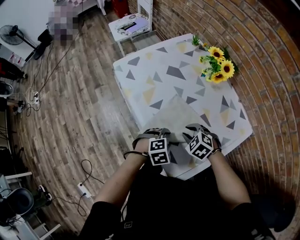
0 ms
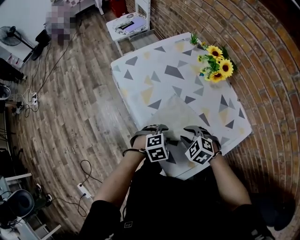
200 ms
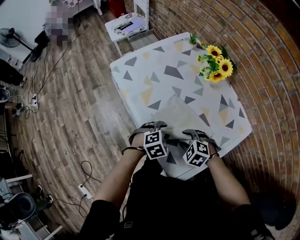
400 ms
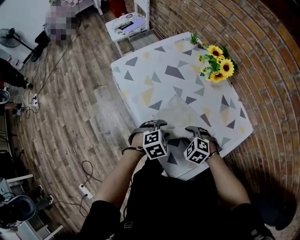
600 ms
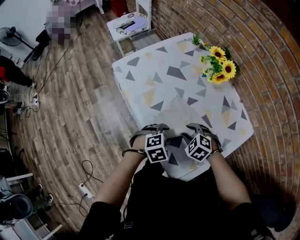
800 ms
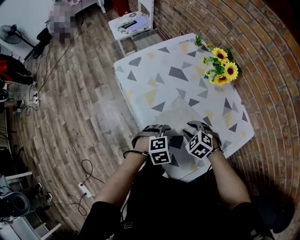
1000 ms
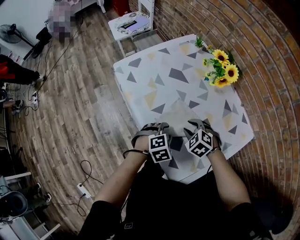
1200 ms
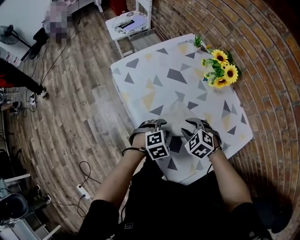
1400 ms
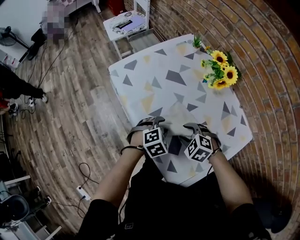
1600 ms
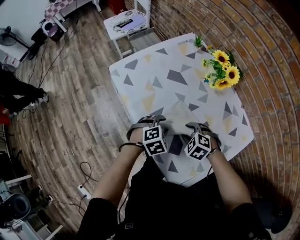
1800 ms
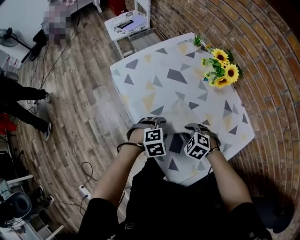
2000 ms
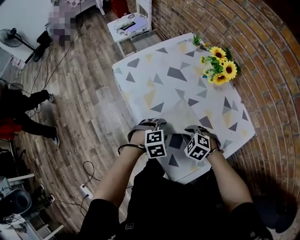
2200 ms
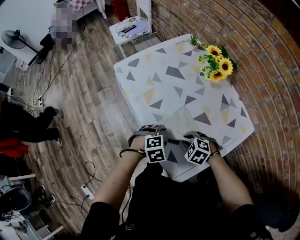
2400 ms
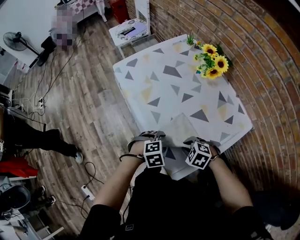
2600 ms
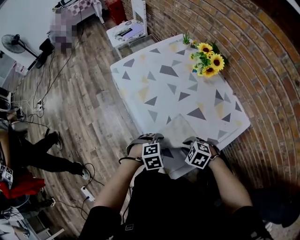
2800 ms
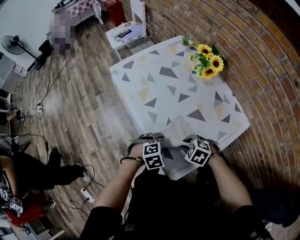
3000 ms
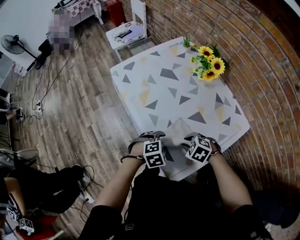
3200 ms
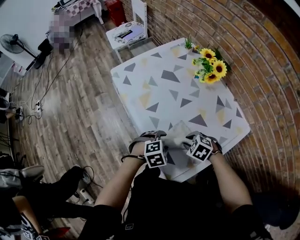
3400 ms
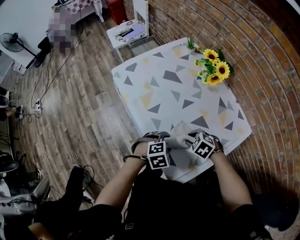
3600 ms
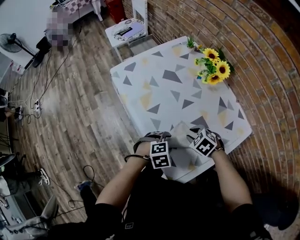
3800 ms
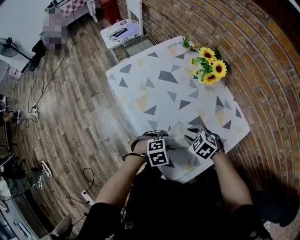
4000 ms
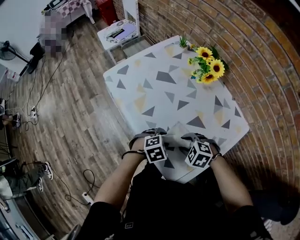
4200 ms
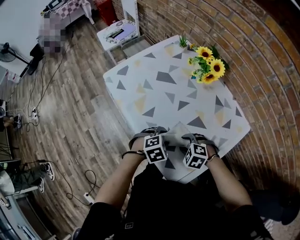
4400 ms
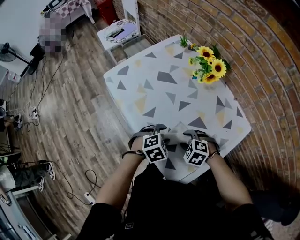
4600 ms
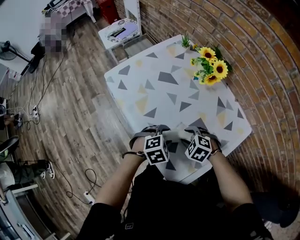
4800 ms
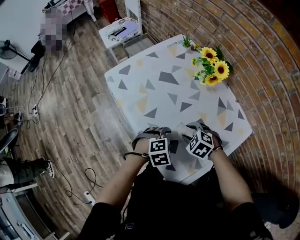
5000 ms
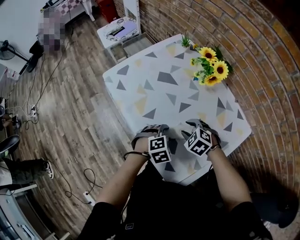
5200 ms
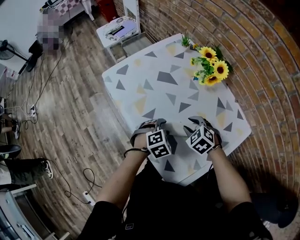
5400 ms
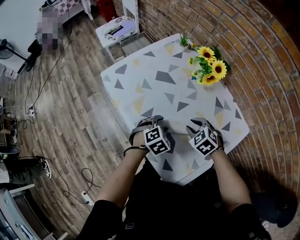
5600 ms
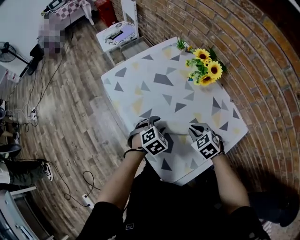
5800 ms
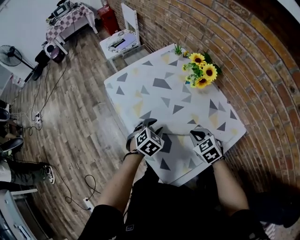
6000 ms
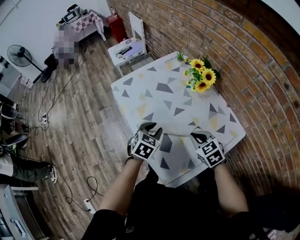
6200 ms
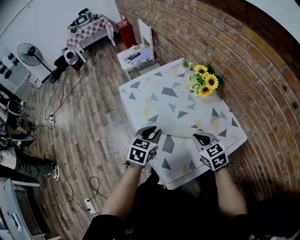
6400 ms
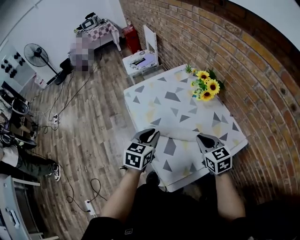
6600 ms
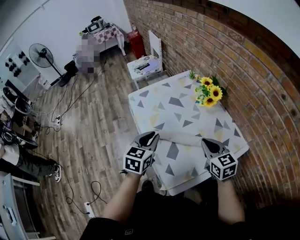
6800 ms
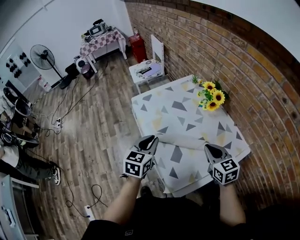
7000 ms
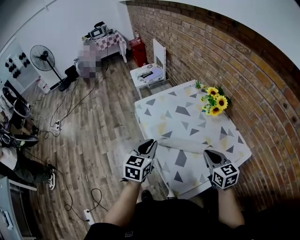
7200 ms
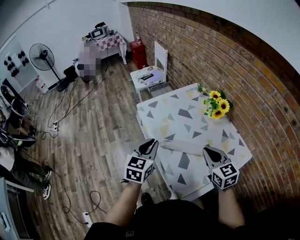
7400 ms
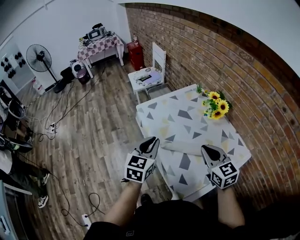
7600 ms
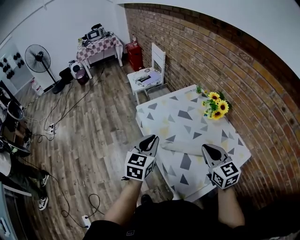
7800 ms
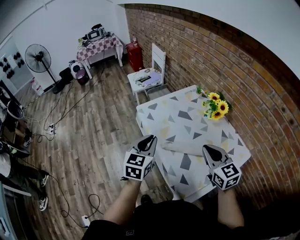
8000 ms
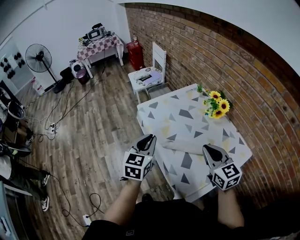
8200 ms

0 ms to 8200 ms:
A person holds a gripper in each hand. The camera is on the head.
0 ms to 1600 ms: The right gripper opens its fingers. Meanwhile the left gripper heads forward, covering approximately 10 cm.
1600 ms to 3200 ms: The right gripper shifts by about 10 cm, and closes. The left gripper shifts by some 15 cm.
3200 ms to 5000 ms: The right gripper ends up about 10 cm from where it was, and opens its fingers, while the left gripper ends up roughly 5 cm from where it was.
5000 ms to 6600 ms: The right gripper goes approximately 20 cm upward and to the right, tips its fingers upward by about 40 degrees, and closes up; the left gripper is displaced upward by roughly 20 cm, points its fingers some 30 degrees further upward, and closes.
6600 ms to 8200 ms: The two grippers go some 15 cm to the left and upward.

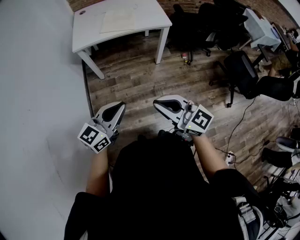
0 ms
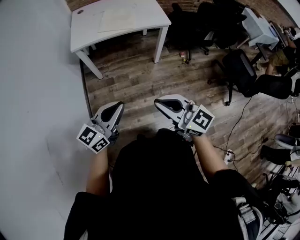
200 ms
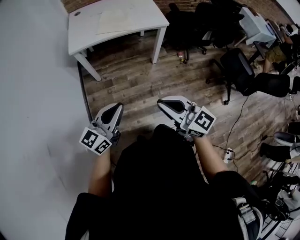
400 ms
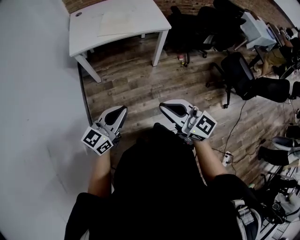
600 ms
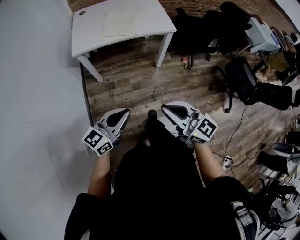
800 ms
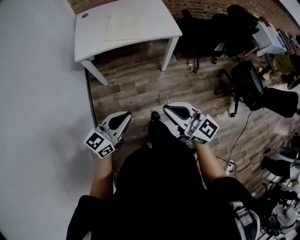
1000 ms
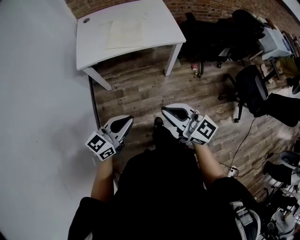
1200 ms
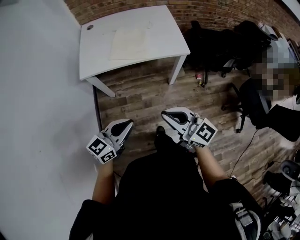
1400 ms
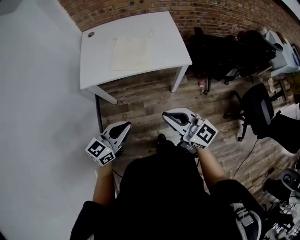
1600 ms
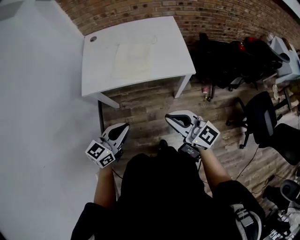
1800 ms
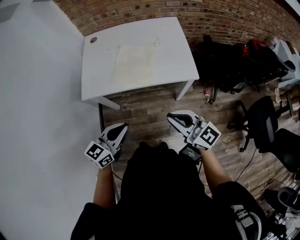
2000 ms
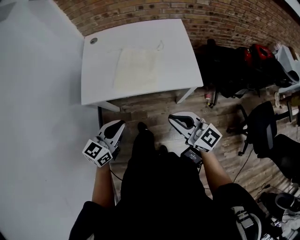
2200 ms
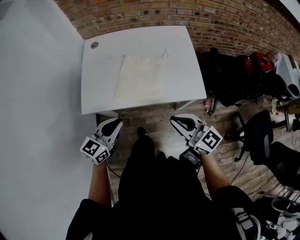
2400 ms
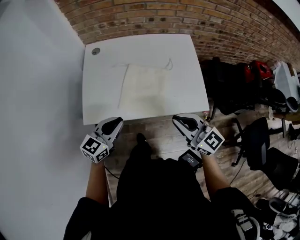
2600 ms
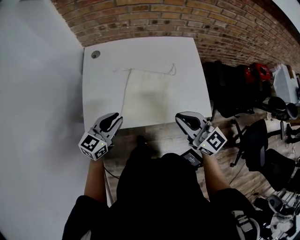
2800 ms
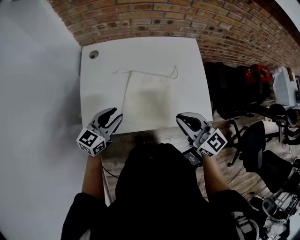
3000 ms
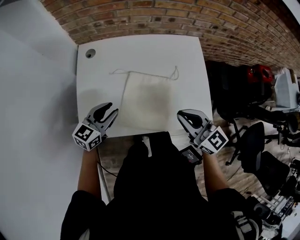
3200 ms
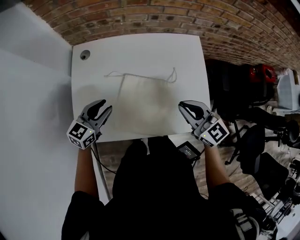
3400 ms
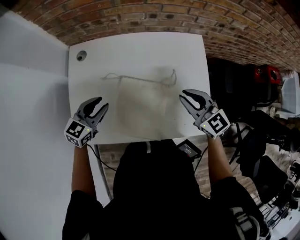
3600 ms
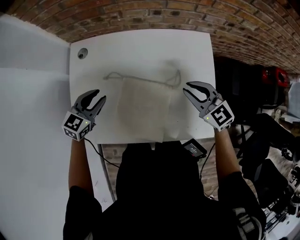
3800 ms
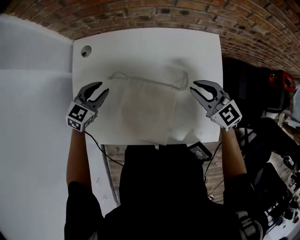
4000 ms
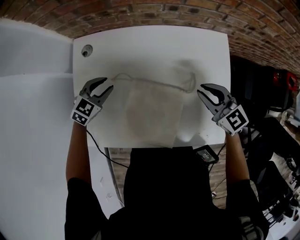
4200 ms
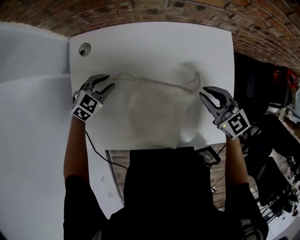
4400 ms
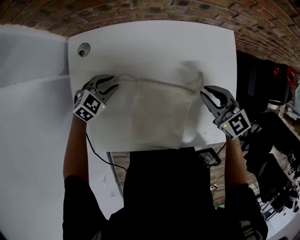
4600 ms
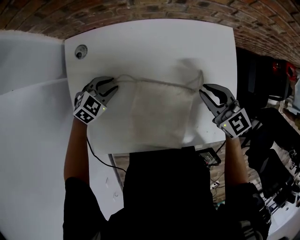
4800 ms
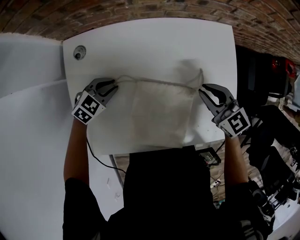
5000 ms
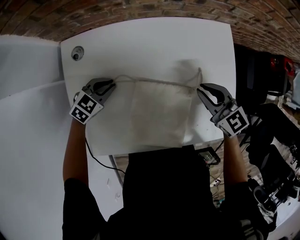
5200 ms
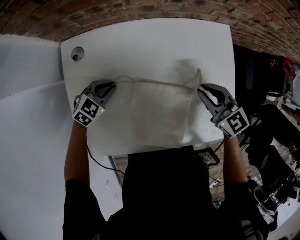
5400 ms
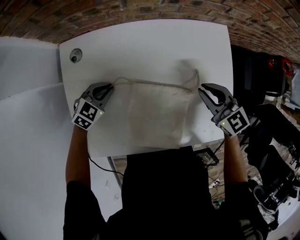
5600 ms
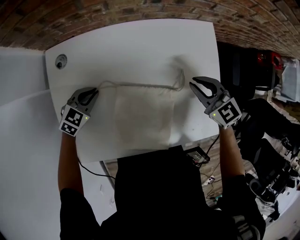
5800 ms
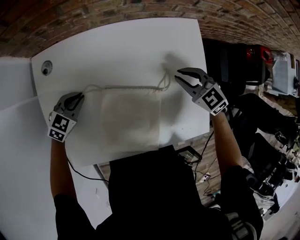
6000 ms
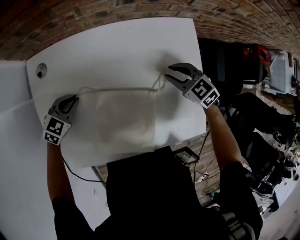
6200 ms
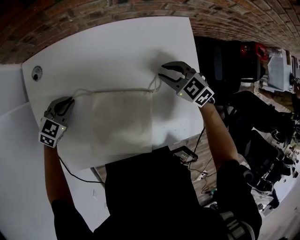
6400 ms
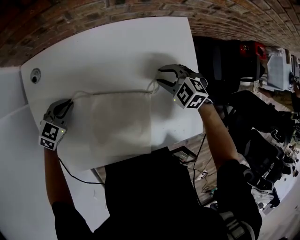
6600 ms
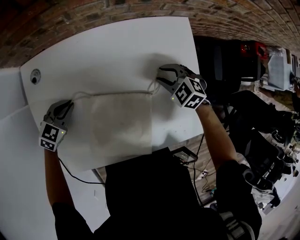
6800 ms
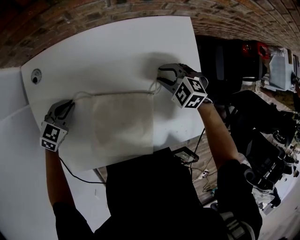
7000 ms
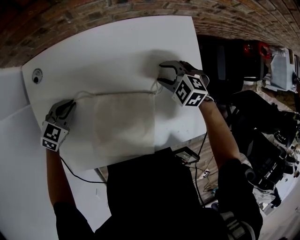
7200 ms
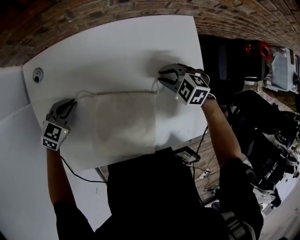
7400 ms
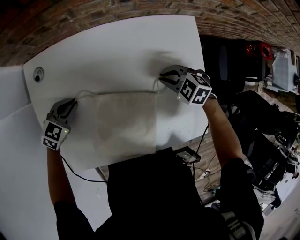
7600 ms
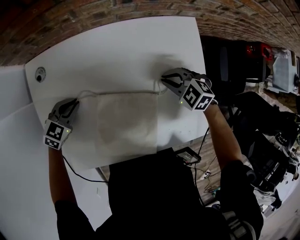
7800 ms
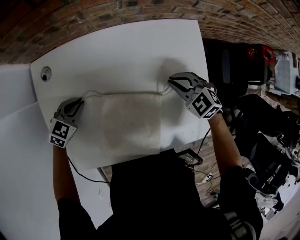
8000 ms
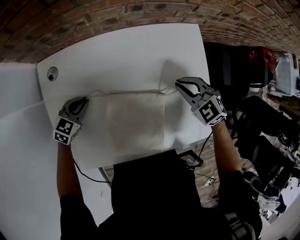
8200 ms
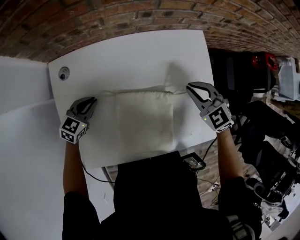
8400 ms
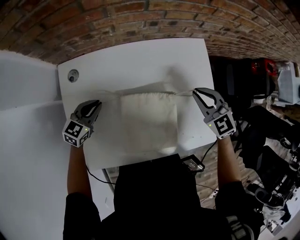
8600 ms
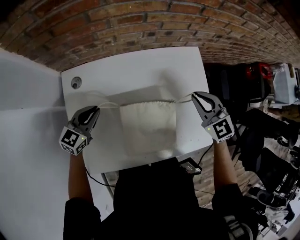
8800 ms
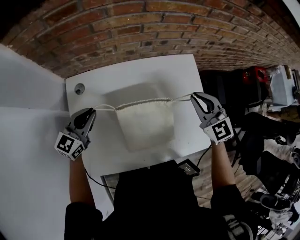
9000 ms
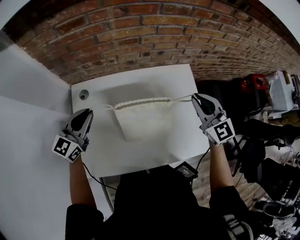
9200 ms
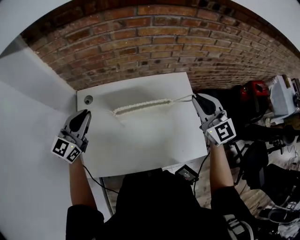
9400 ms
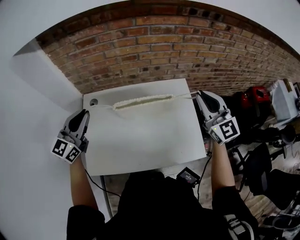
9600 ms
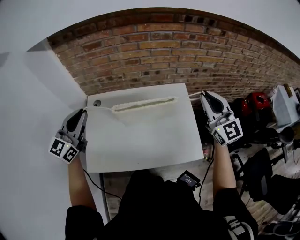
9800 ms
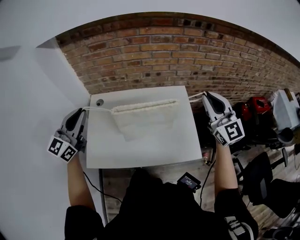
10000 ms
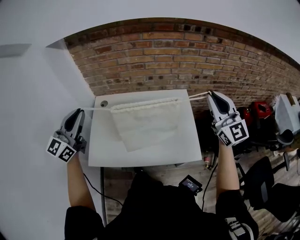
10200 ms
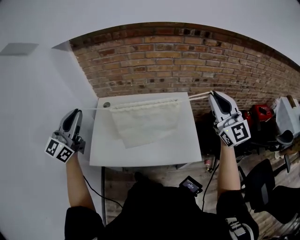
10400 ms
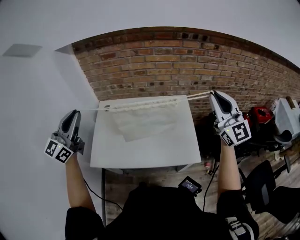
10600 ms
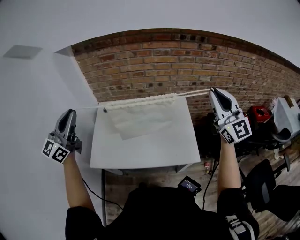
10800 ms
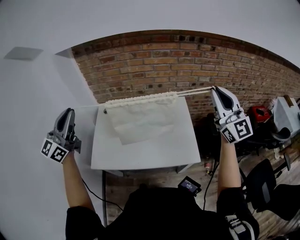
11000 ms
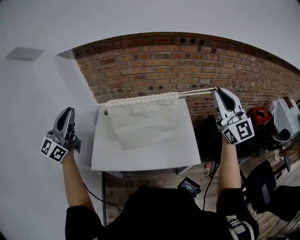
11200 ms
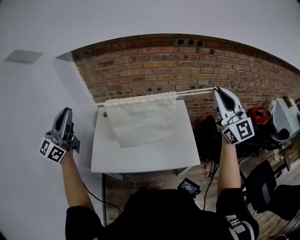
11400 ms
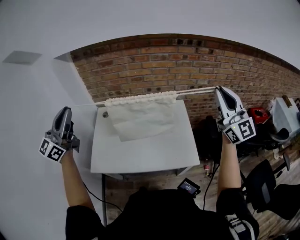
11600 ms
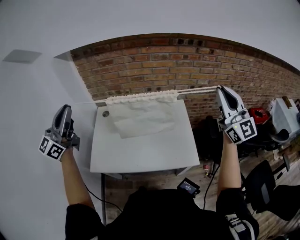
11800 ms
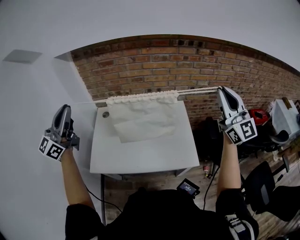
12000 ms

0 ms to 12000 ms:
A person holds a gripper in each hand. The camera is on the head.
0 ms to 1600 ms: The two grippers go some 30 cm forward.
1600 ms to 3000 ms: The two grippers go approximately 40 cm forward. The left gripper opens its fingers.
3000 ms to 4400 ms: The two grippers go about 30 cm forward and downward. The left gripper tips its fingers downward by some 30 degrees, while the right gripper changes its angle by roughly 20 degrees.
4400 ms to 6000 ms: The right gripper shifts approximately 5 cm downward. Meanwhile the left gripper closes up.
6000 ms to 7600 ms: The right gripper moves downward, some 5 cm, rotates approximately 30 degrees, and opens, then closes again.
7600 ms to 9000 ms: The two grippers go roughly 25 cm upward. The left gripper angles its fingers upward, by approximately 30 degrees. Meanwhile the right gripper points its fingers some 40 degrees further upward.
9000 ms to 10400 ms: The two grippers go about 35 cm upward and backward. The right gripper angles its fingers upward, by roughly 30 degrees. Meanwhile the left gripper swivels approximately 30 degrees.
10400 ms to 12000 ms: The two grippers go about 10 cm upward.

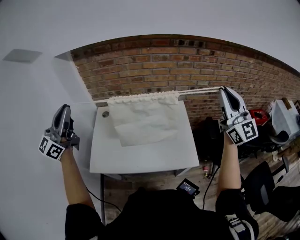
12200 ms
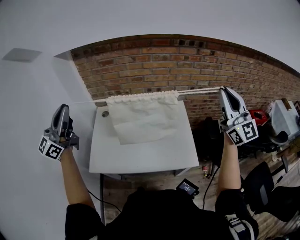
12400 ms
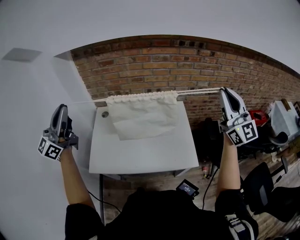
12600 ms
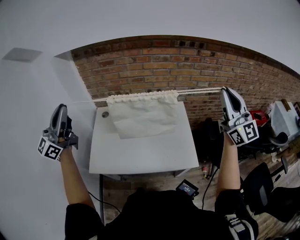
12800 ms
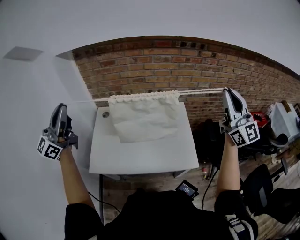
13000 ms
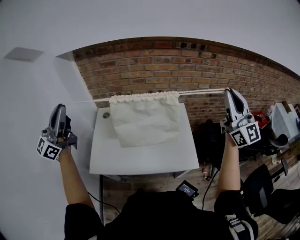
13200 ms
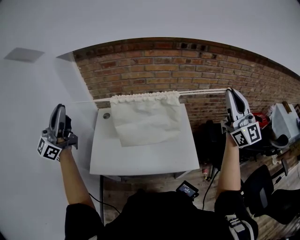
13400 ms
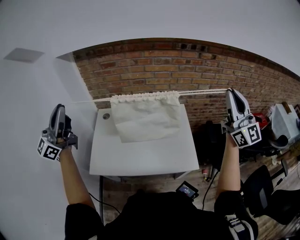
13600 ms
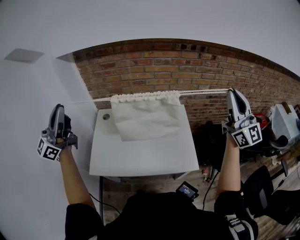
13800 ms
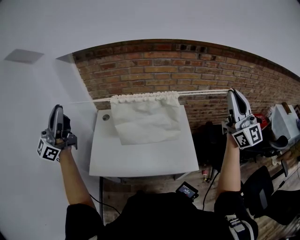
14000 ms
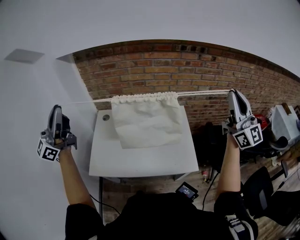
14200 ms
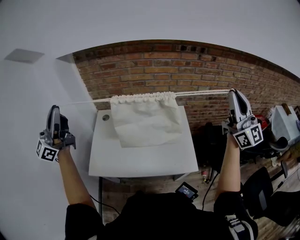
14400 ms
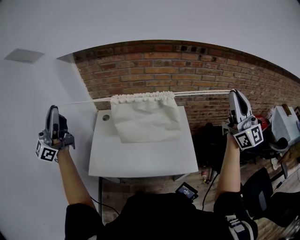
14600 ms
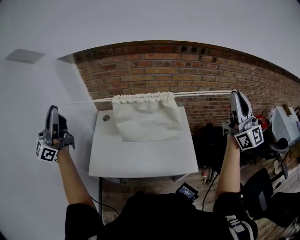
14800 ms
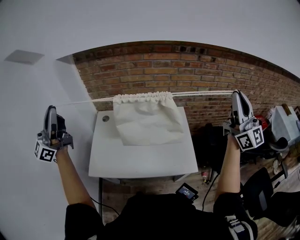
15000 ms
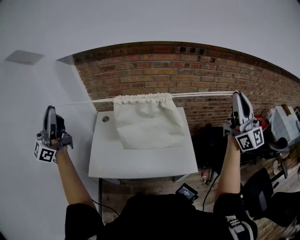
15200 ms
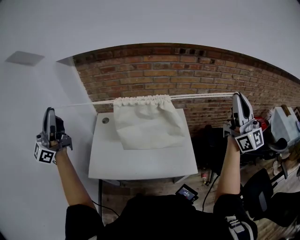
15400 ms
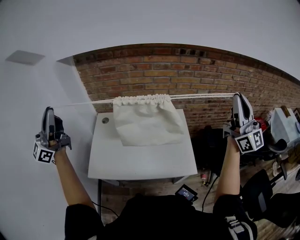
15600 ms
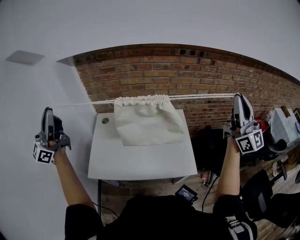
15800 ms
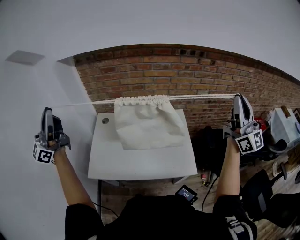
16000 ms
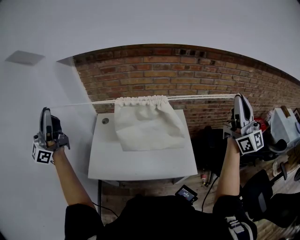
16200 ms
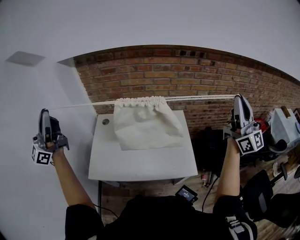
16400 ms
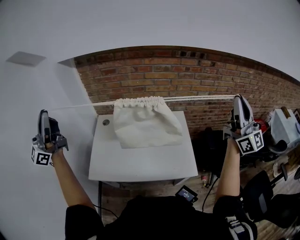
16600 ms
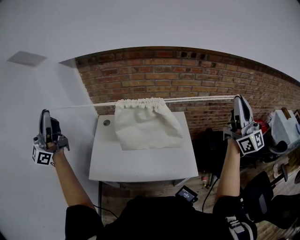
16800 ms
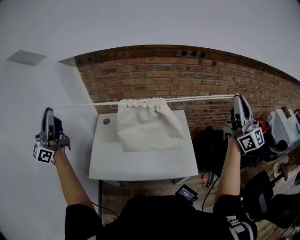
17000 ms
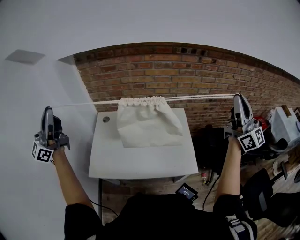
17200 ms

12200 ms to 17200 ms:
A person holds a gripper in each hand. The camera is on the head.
12200 ms to 13800 ms: There are only small adjustments of the grippers.
13800 ms to 15600 ms: The grippers move only a little.
15600 ms to 17200 ms: The grippers stay close to where they were, moving slightly.
